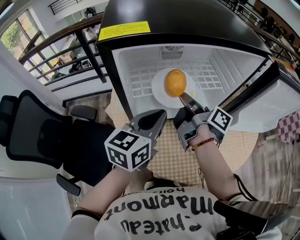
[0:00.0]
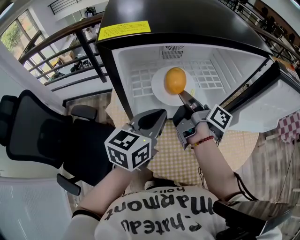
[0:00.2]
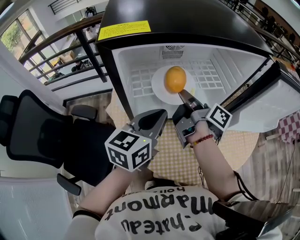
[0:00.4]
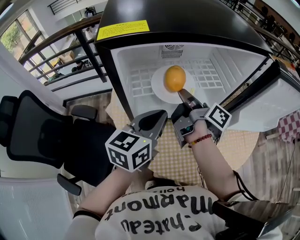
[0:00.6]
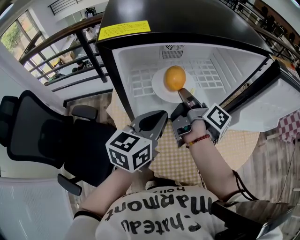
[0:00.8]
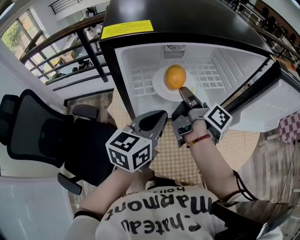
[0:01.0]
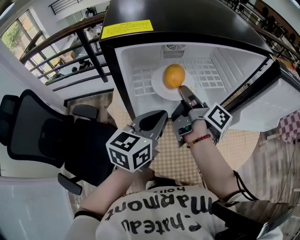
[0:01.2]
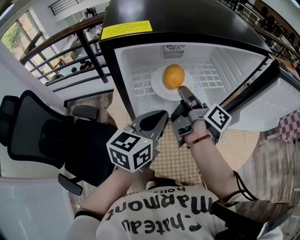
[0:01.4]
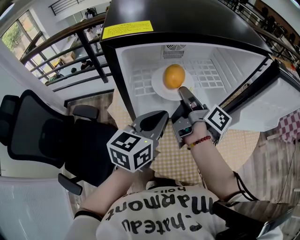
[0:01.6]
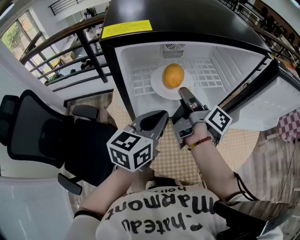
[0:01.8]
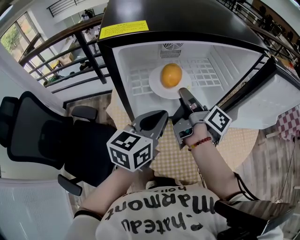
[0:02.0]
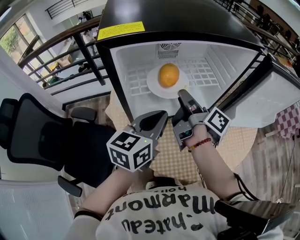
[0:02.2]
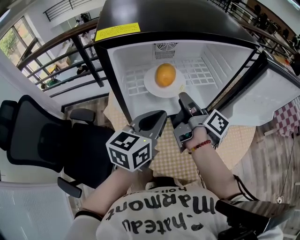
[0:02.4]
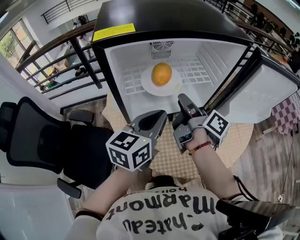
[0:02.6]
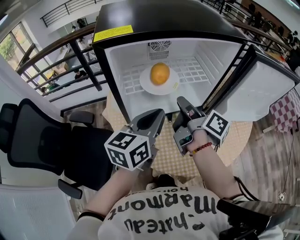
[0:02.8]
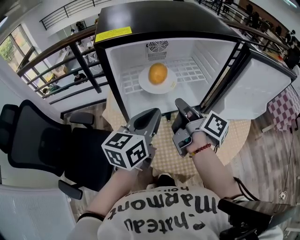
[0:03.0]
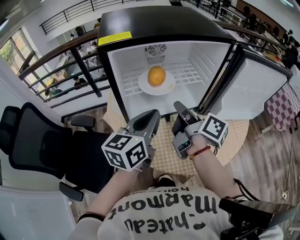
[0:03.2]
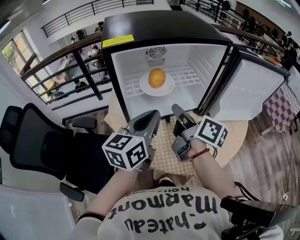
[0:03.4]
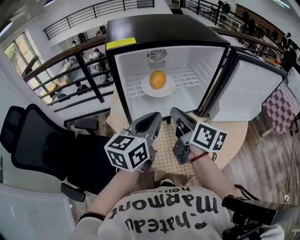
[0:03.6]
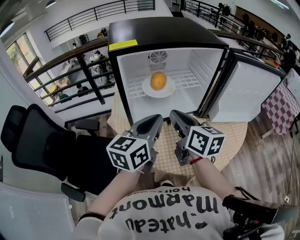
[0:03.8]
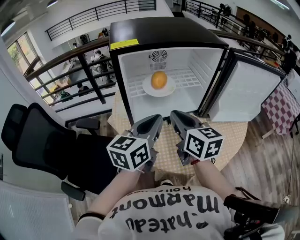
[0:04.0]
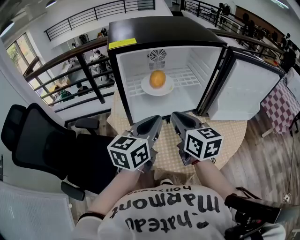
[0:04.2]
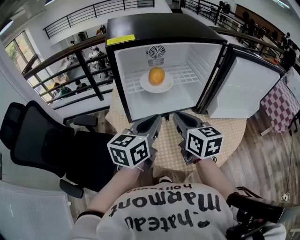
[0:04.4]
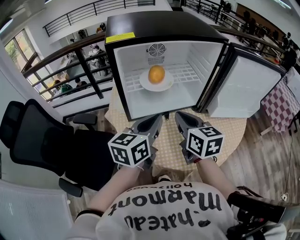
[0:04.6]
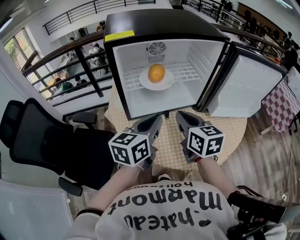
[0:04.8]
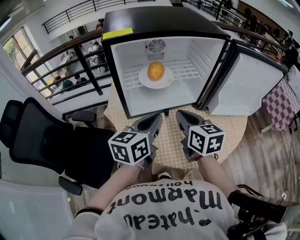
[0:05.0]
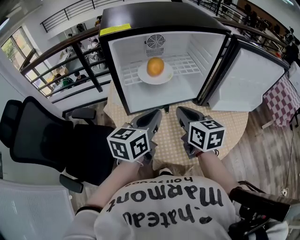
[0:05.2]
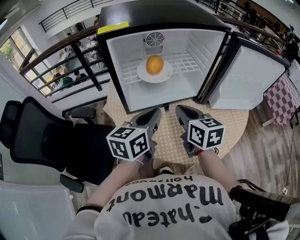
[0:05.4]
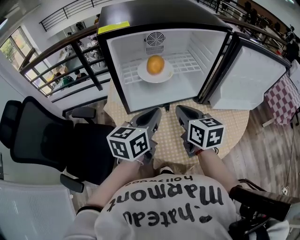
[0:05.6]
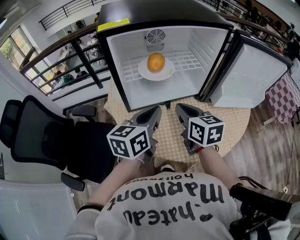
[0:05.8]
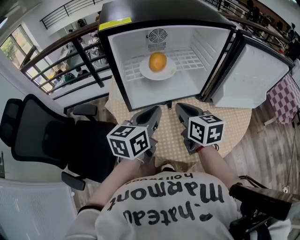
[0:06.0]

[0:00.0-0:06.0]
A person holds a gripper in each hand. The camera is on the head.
0:00.0 to 0:01.6: The right gripper opens.
0:01.6 to 0:03.0: The right gripper travels backward by approximately 5 cm, and closes.
0:03.0 to 0:04.4: The right gripper heads backward, covering approximately 10 cm, and twists approximately 60 degrees counterclockwise, seen from behind.
0:04.4 to 0:06.0: The right gripper ends up about 5 cm from where it was.

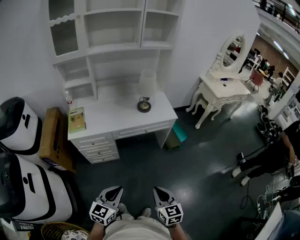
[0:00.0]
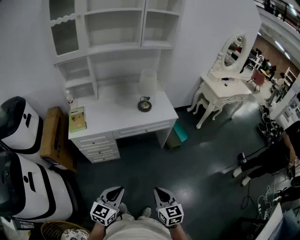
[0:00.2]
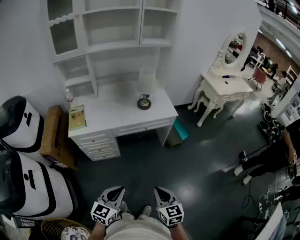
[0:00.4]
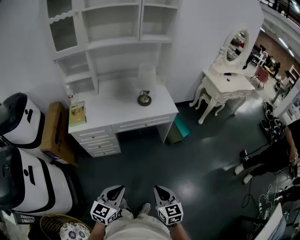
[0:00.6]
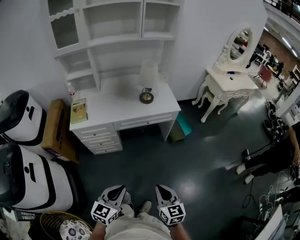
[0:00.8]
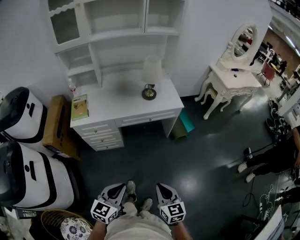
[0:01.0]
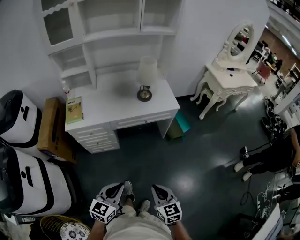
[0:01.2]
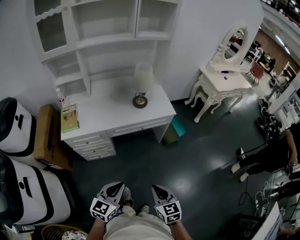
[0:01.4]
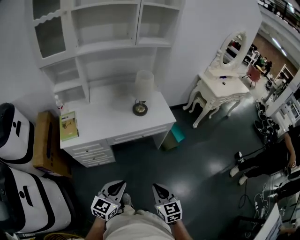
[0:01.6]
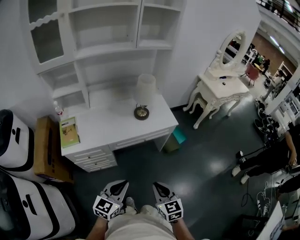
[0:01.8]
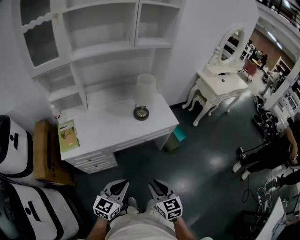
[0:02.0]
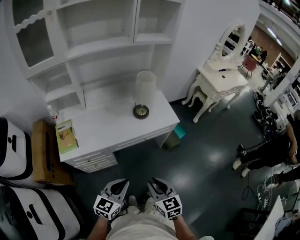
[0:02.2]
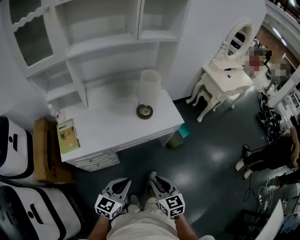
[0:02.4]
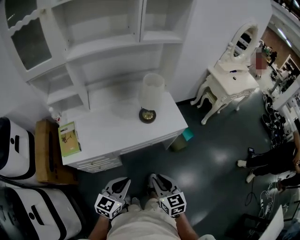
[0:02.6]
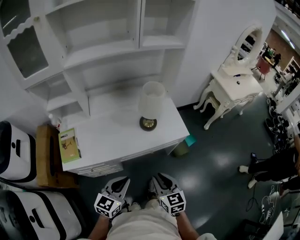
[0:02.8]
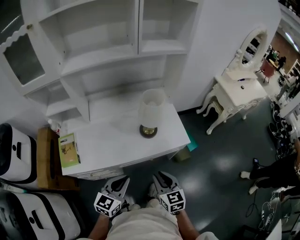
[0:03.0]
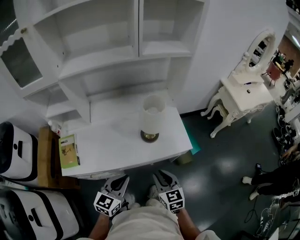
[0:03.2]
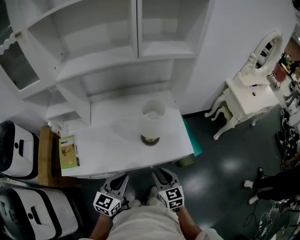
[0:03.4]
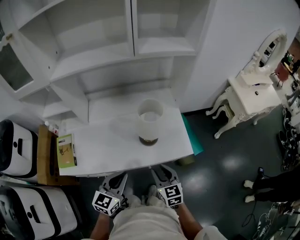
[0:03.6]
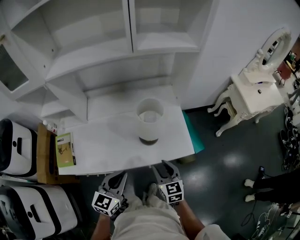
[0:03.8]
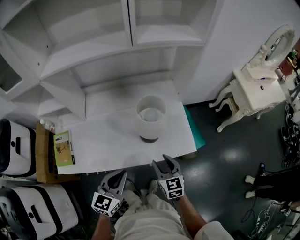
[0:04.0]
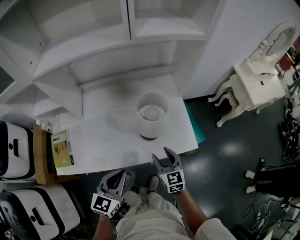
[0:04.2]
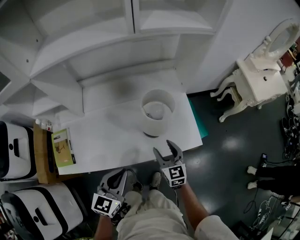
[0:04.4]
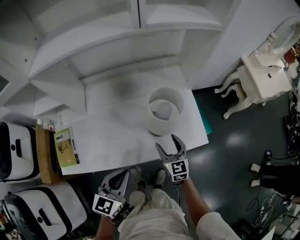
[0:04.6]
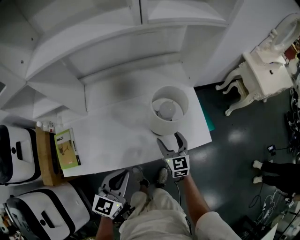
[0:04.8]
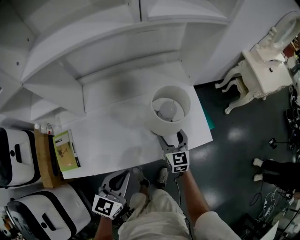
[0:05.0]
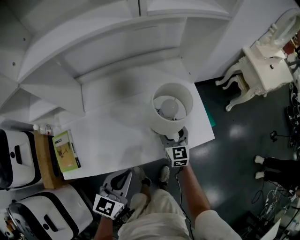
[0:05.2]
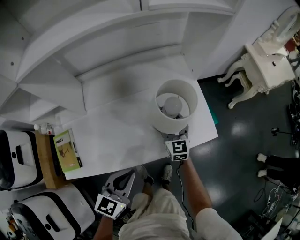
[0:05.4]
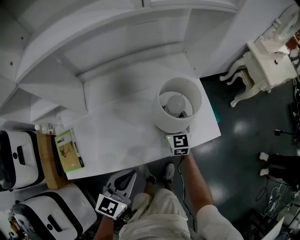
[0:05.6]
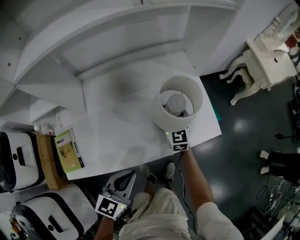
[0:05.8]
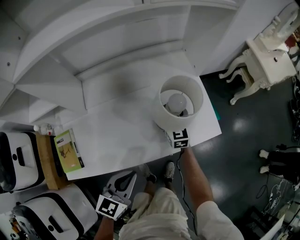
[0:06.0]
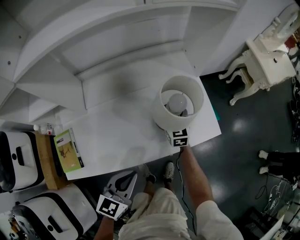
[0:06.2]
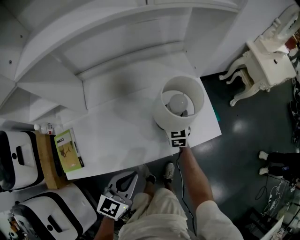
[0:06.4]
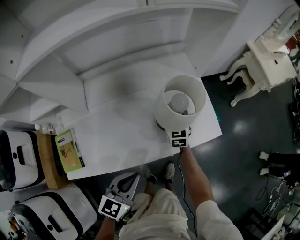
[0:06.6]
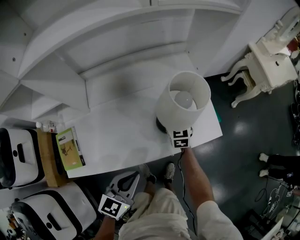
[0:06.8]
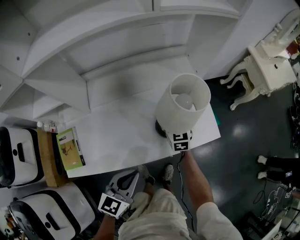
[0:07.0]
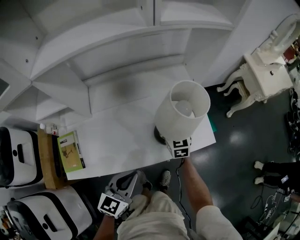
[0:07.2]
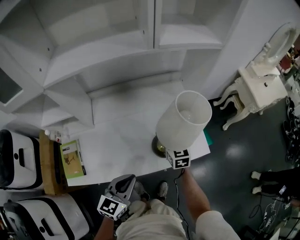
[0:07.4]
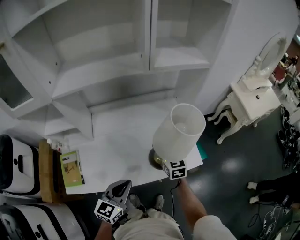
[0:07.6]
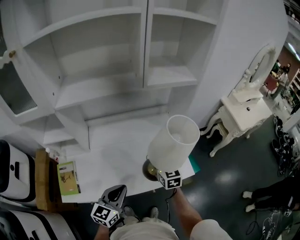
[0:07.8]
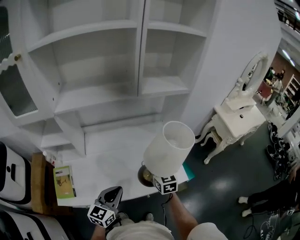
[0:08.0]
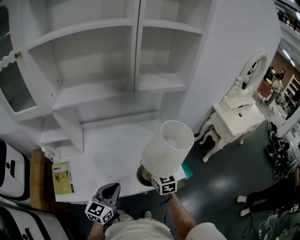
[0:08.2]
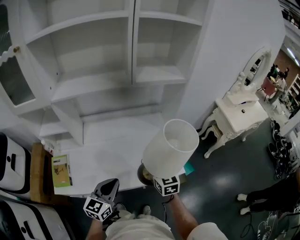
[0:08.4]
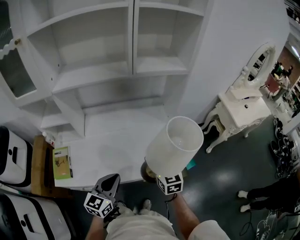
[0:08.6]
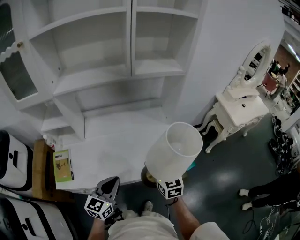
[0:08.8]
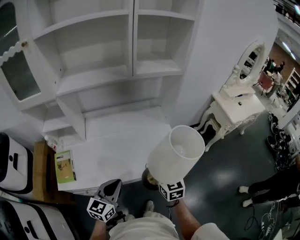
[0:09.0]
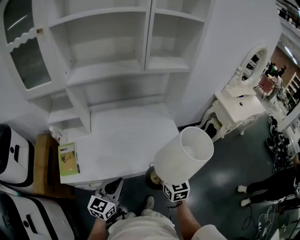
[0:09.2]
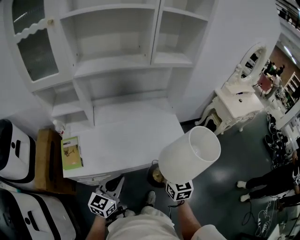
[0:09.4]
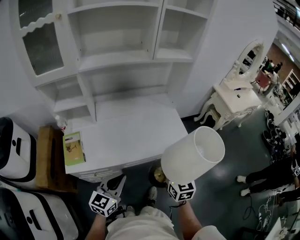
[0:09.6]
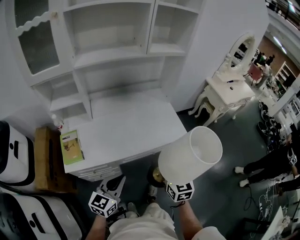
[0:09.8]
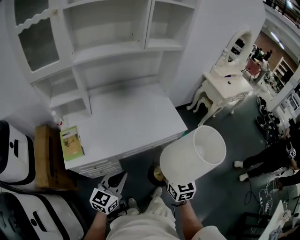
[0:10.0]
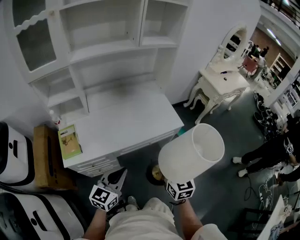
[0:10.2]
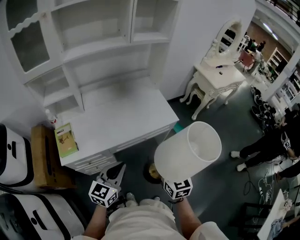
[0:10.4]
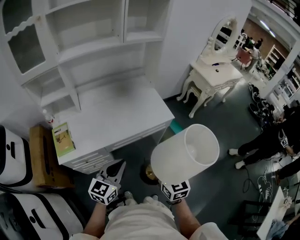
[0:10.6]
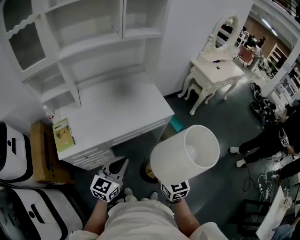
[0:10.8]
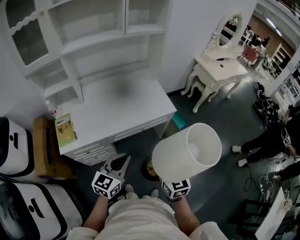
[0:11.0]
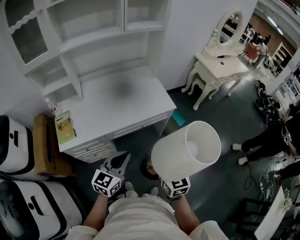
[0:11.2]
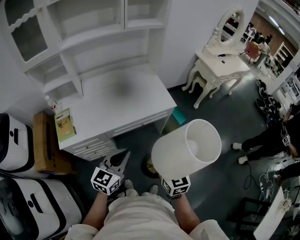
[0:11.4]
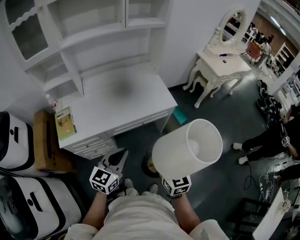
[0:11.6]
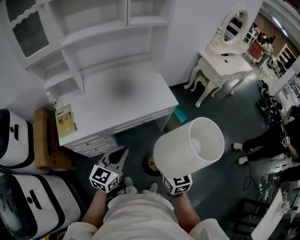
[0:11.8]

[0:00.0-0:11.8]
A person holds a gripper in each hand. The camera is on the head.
0:00.0 to 0:01.4: Both grippers travel together forward, roughly 5 cm.
0:01.4 to 0:03.0: Both grippers move forward, approximately 35 cm.
0:03.0 to 0:04.4: The left gripper heads forward, covering about 15 cm, while the right gripper heads forward and downward, covering approximately 25 cm, and opens up.
0:04.4 to 0:06.0: The right gripper shifts roughly 15 cm forward. Meanwhile the left gripper shifts by roughly 5 cm.
0:06.0 to 0:07.4: The right gripper heads upward, covering some 10 cm, and closes its fingers.
0:07.4 to 0:08.8: The right gripper goes some 20 cm backward, upward and to the right, while the left gripper travels upward by roughly 5 cm.
0:08.8 to 0:10.4: The grippers both shift backward by some 25 cm.
0:10.4 to 0:11.8: Both grippers travel together to the right, approximately 5 cm.

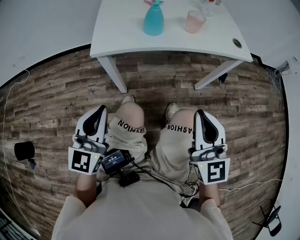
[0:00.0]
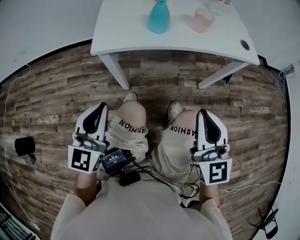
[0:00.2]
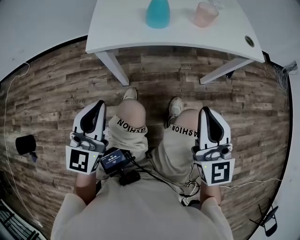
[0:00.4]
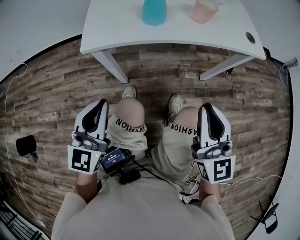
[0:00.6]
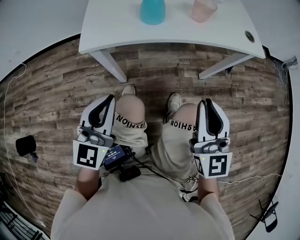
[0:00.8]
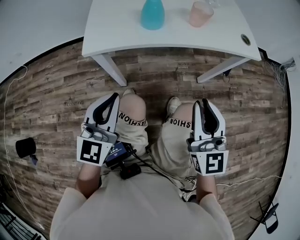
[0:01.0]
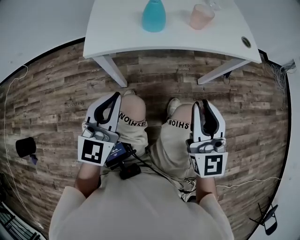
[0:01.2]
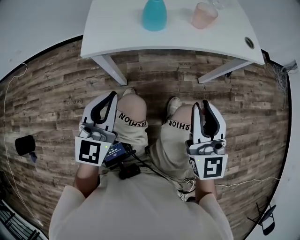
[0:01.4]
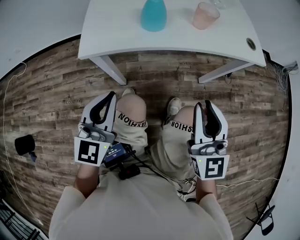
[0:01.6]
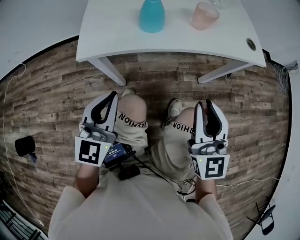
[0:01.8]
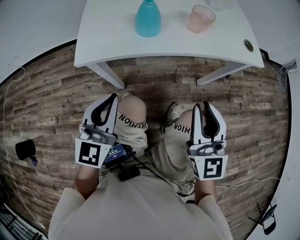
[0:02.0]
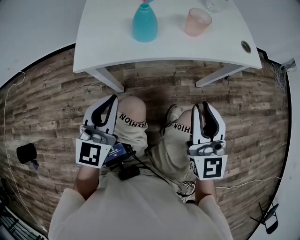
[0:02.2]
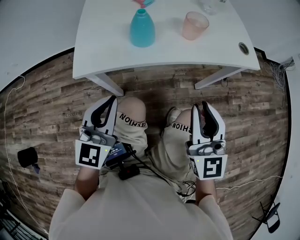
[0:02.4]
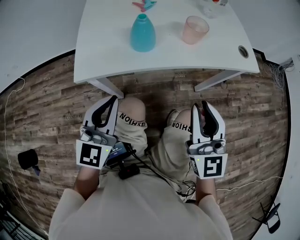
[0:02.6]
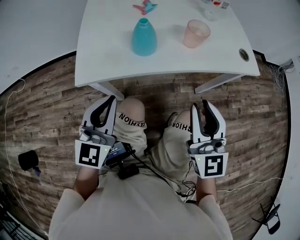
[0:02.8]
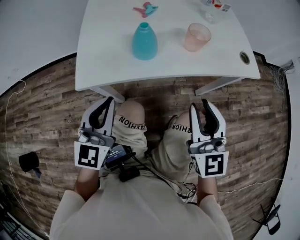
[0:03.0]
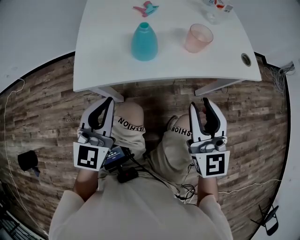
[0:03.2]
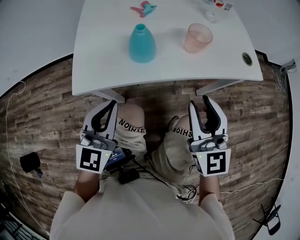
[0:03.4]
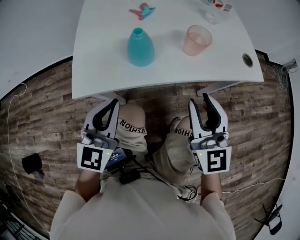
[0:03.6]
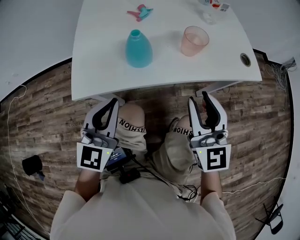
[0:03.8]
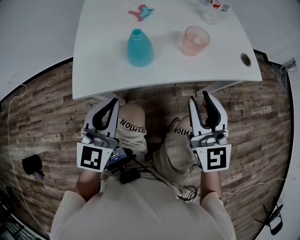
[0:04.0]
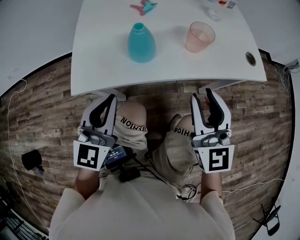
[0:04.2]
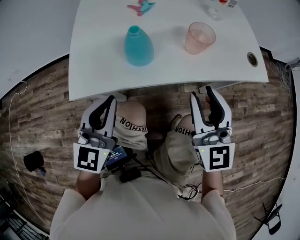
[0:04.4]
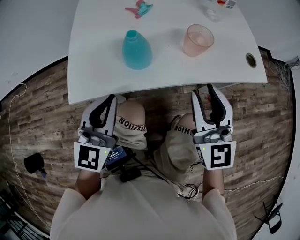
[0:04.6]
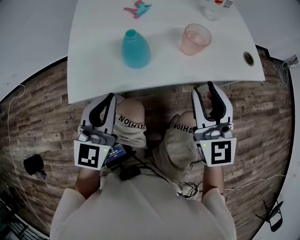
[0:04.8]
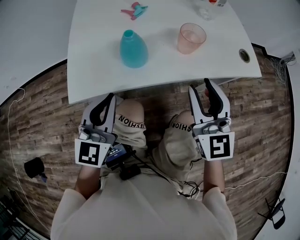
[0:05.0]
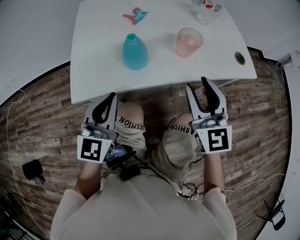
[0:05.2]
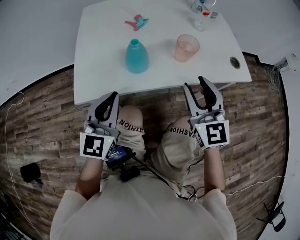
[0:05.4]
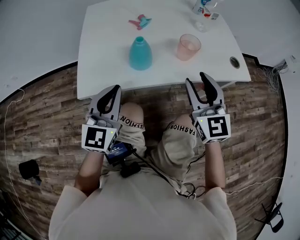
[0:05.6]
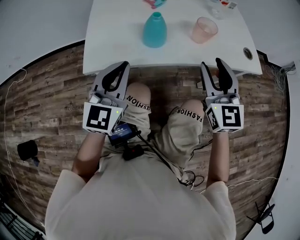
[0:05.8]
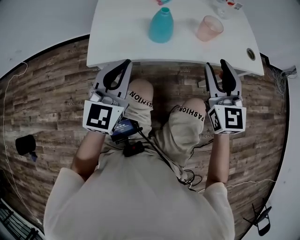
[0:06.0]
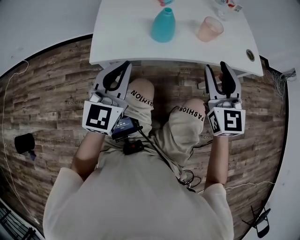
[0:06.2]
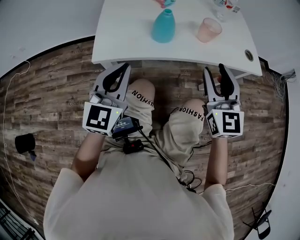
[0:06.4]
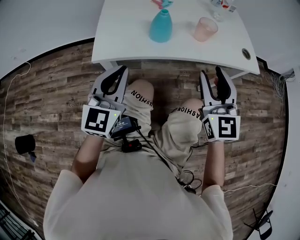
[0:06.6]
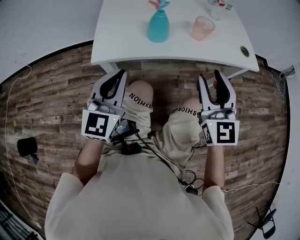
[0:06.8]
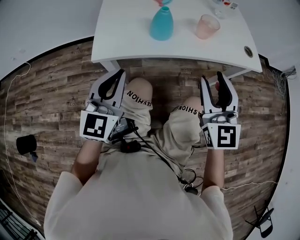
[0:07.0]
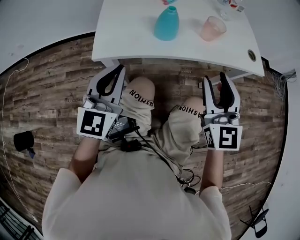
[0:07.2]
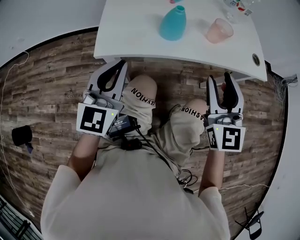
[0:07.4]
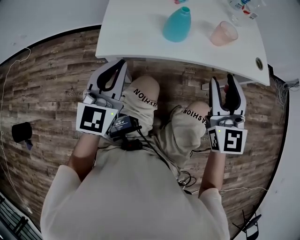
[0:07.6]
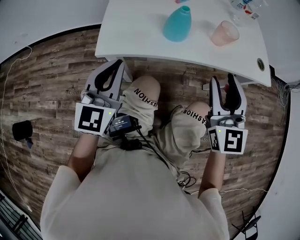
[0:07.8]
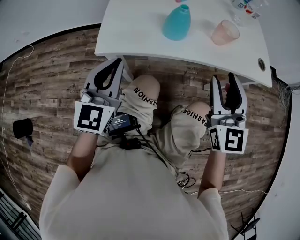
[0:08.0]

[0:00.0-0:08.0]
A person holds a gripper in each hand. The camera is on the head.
0:00.0 to 0:01.6: The two grippers go approximately 10 cm forward.
0:01.6 to 0:03.2: The two grippers go approximately 10 cm forward.
0:03.2 to 0:04.8: Both grippers travel together forward, about 5 cm.
0:04.8 to 0:06.4: The right gripper moves roughly 5 cm. Meanwhile the left gripper is displaced backward by approximately 5 cm.
0:06.4 to 0:08.0: The grippers move only a little.
